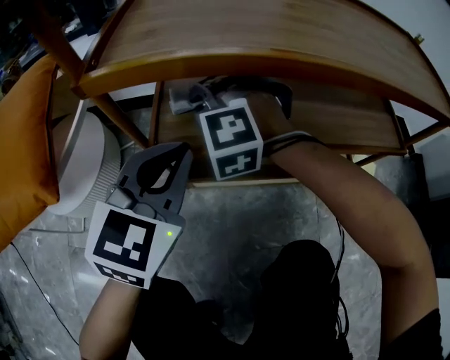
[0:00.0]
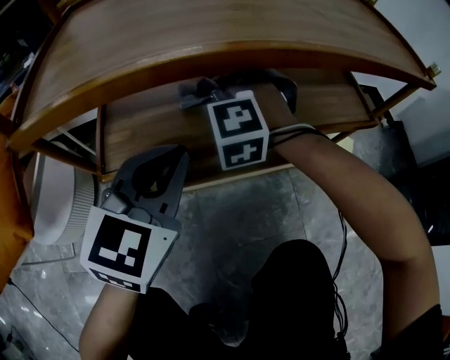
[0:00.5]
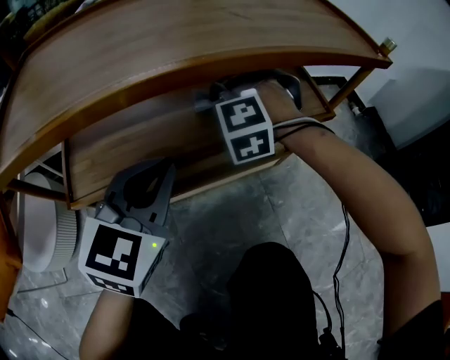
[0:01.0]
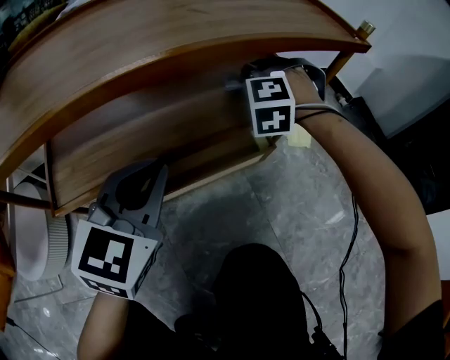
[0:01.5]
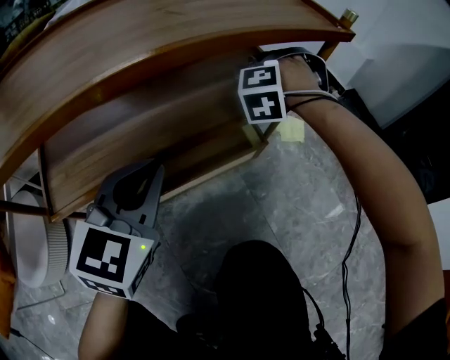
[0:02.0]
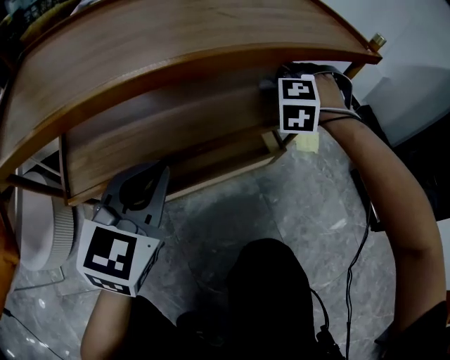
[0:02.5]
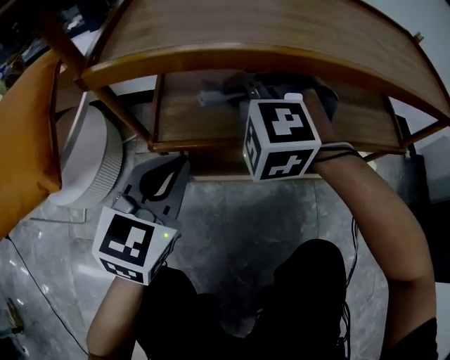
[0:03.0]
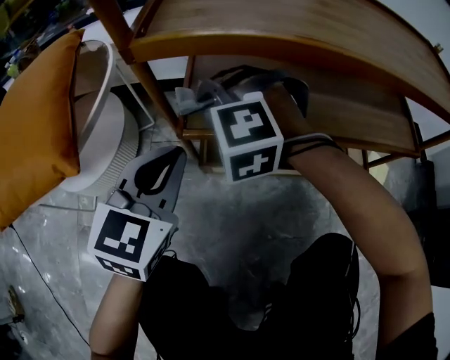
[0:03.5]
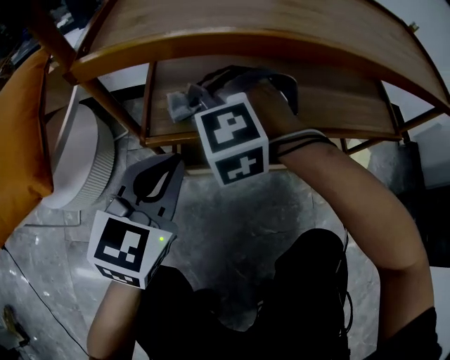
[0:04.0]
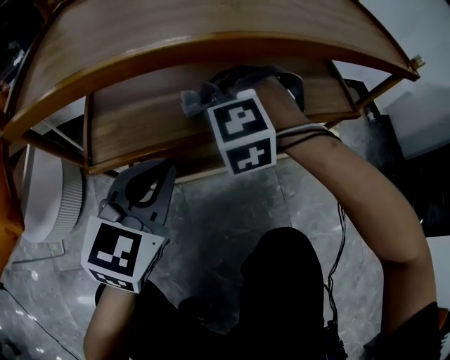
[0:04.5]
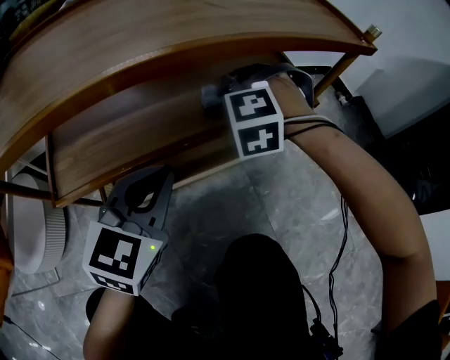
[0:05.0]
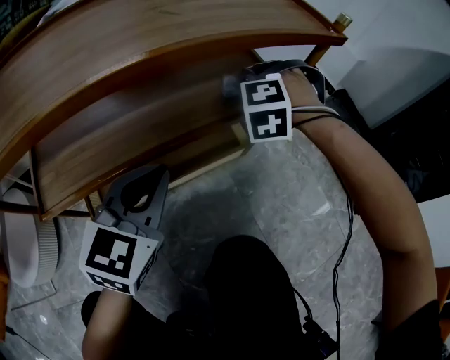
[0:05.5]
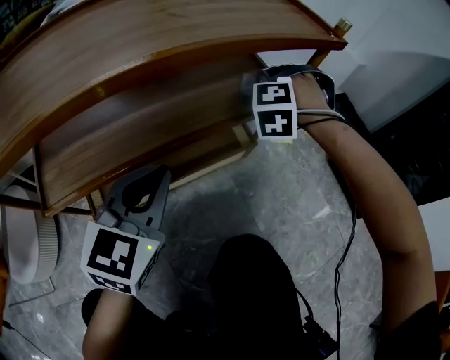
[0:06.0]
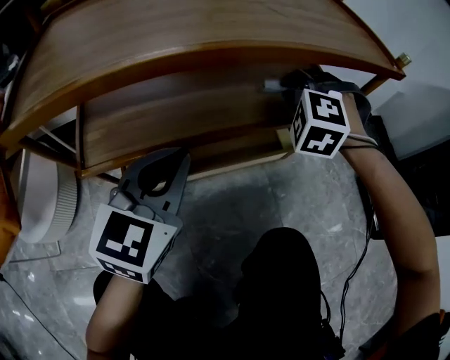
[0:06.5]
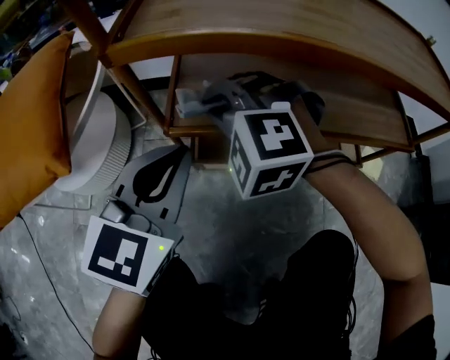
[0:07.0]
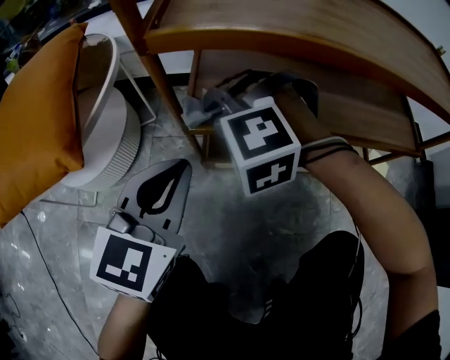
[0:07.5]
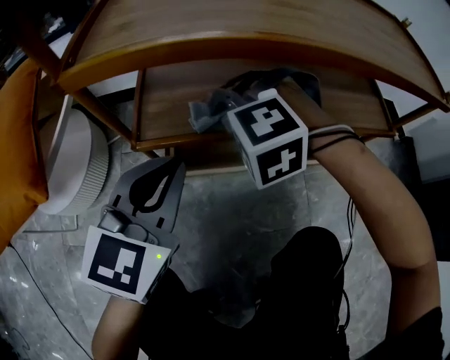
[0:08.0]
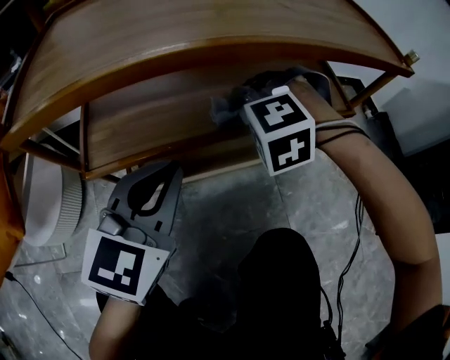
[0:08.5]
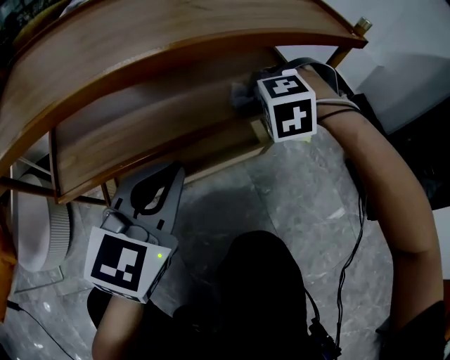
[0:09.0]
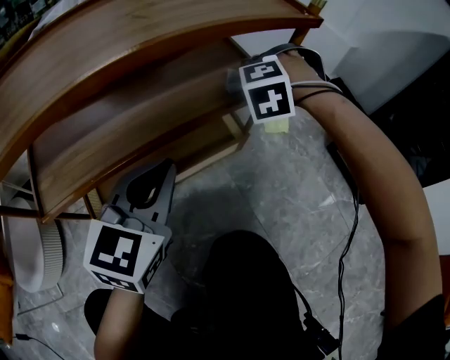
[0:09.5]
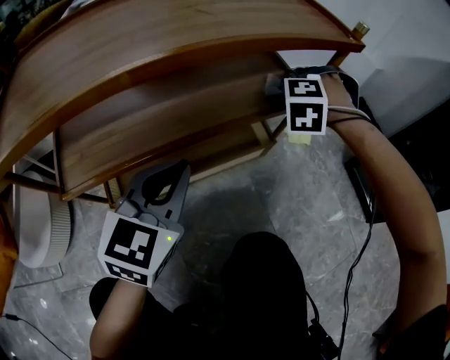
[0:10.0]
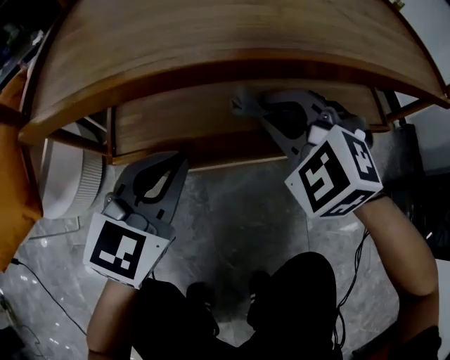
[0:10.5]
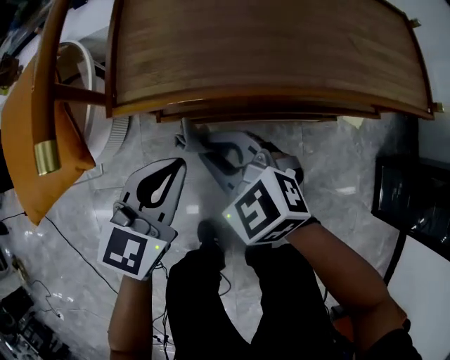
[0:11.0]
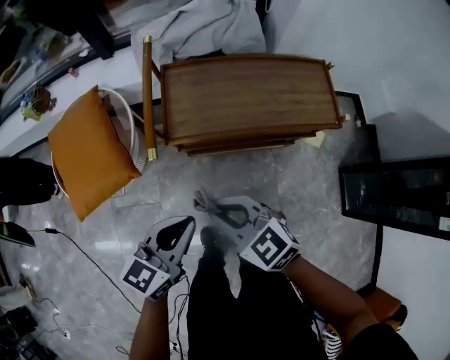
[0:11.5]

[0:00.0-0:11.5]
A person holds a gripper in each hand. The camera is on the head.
0:00.0 to 0:02.0: The left gripper changes place by about 20 cm.
0:02.0 to 0:04.0: The left gripper shifts by approximately 20 cm.
0:04.0 to 0:06.0: The left gripper changes place by approximately 25 cm, and swivels about 20 degrees.
0:06.0 to 0:07.5: The left gripper changes place by about 30 cm, and changes its angle by about 30 degrees.
0:07.5 to 0:09.5: The left gripper shifts by about 30 cm, and swivels roughly 30 degrees.
0:09.5 to 0:11.5: The left gripper is displaced upward by approximately 35 cm, and changes its angle by about 30 degrees.

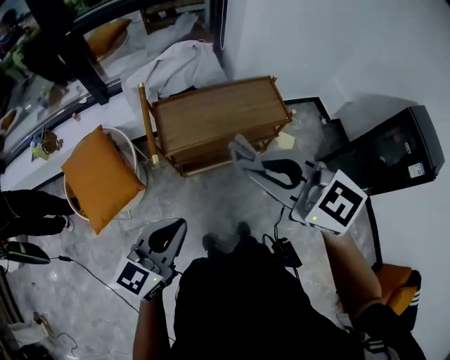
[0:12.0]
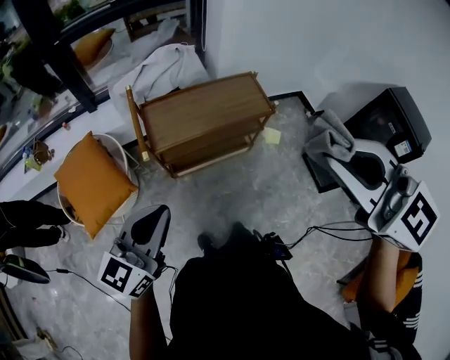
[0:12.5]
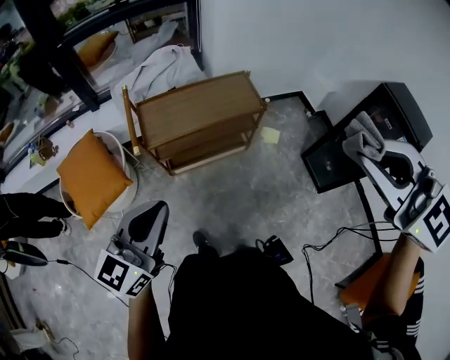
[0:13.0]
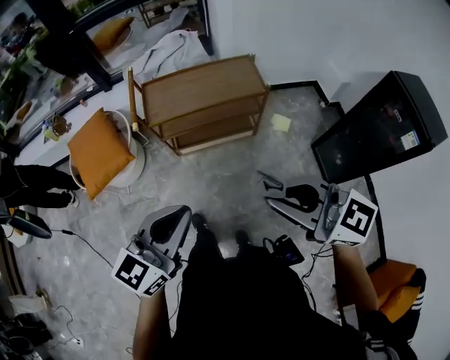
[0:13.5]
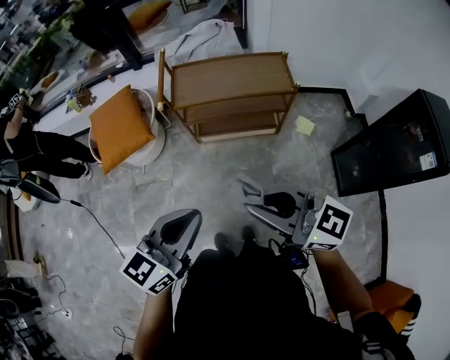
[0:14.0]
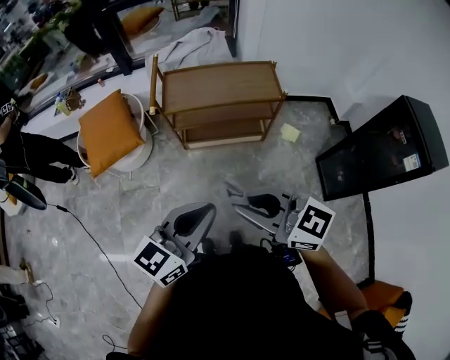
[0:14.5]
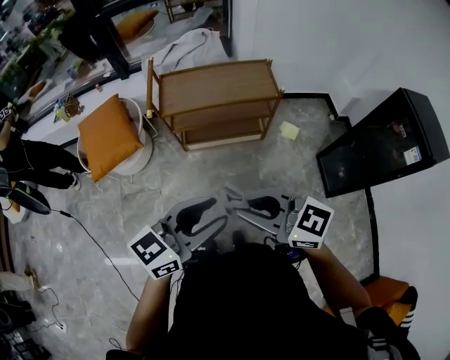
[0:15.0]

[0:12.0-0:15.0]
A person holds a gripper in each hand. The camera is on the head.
0:12.0 to 0:13.5: The left gripper moves roughly 25 cm.
0:13.5 to 0:15.0: The left gripper changes place by some 5 cm, and opens.

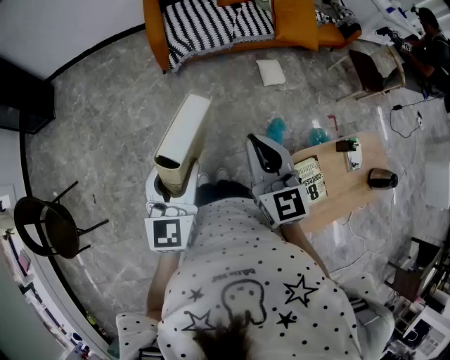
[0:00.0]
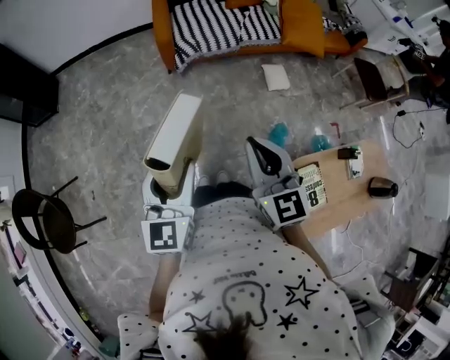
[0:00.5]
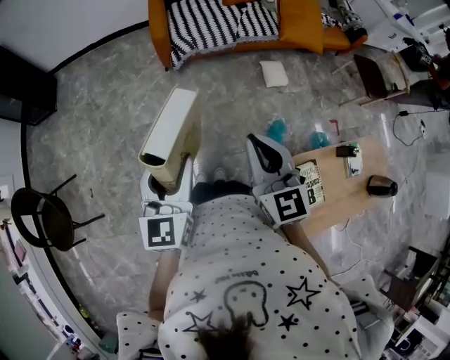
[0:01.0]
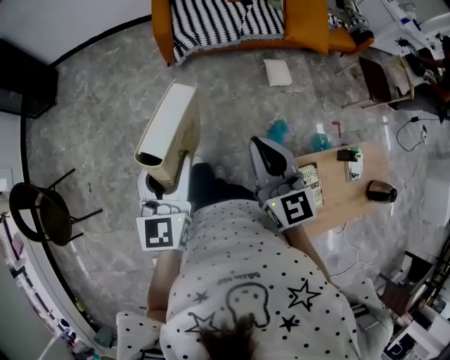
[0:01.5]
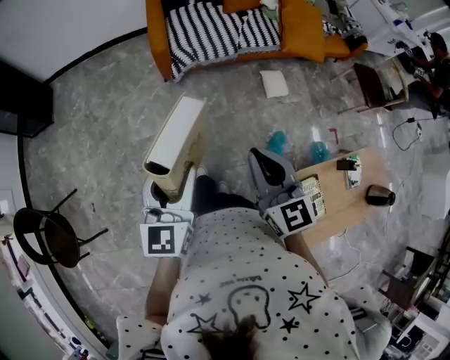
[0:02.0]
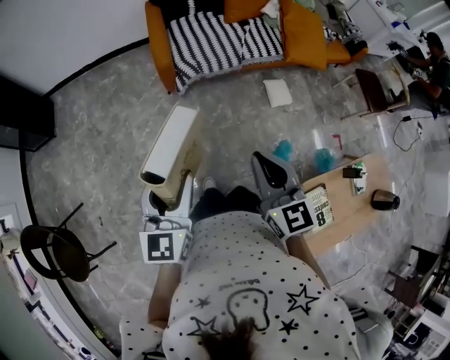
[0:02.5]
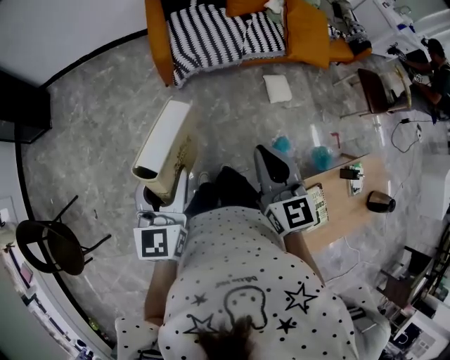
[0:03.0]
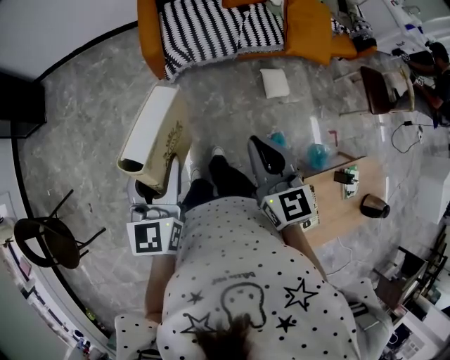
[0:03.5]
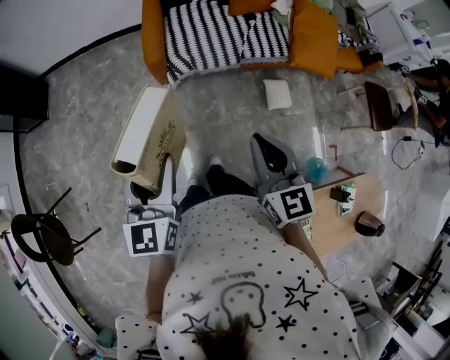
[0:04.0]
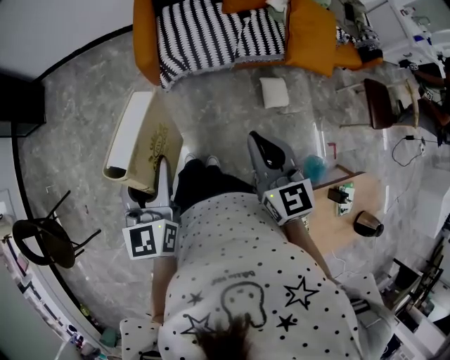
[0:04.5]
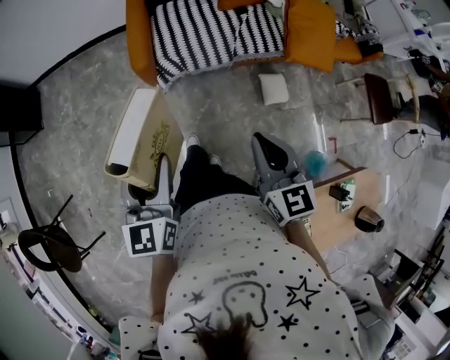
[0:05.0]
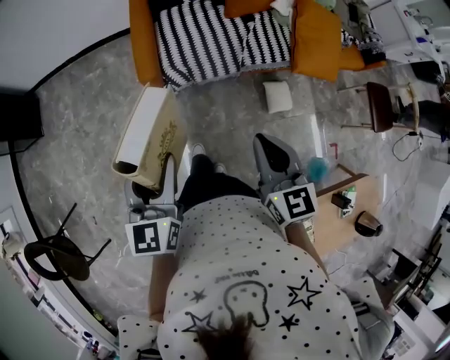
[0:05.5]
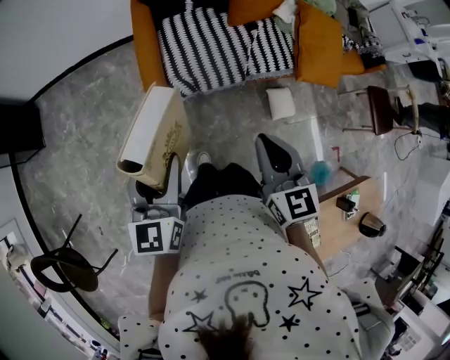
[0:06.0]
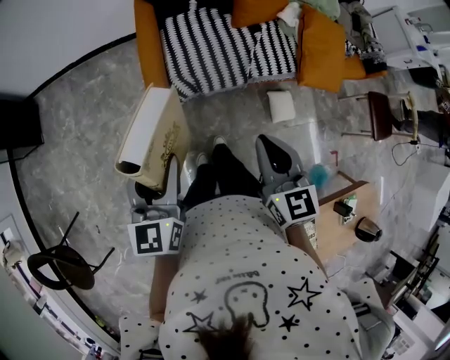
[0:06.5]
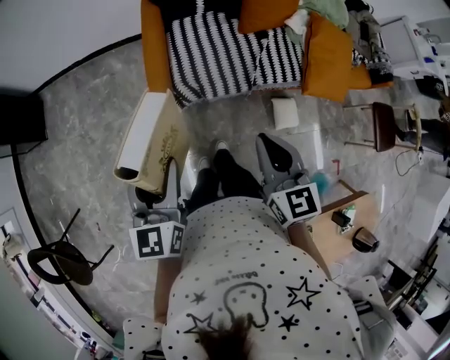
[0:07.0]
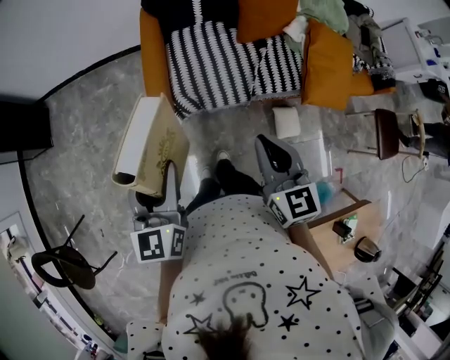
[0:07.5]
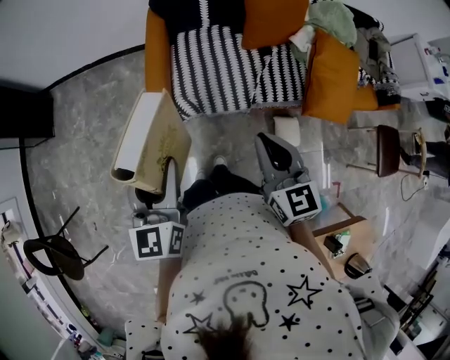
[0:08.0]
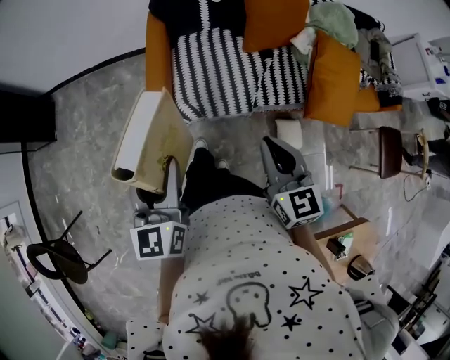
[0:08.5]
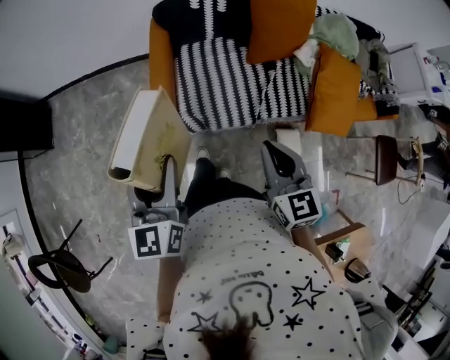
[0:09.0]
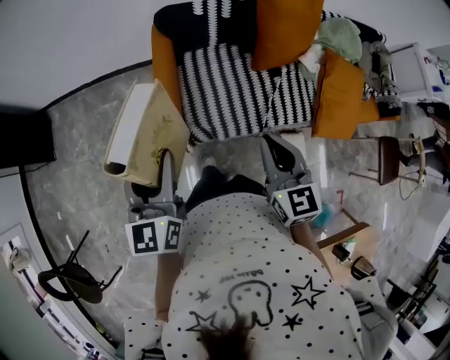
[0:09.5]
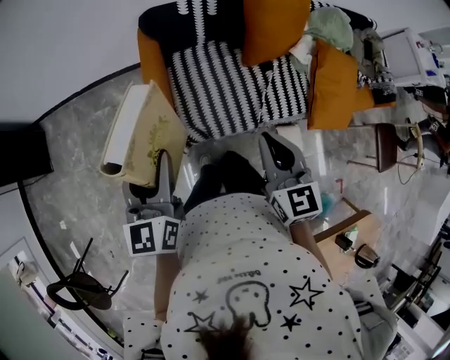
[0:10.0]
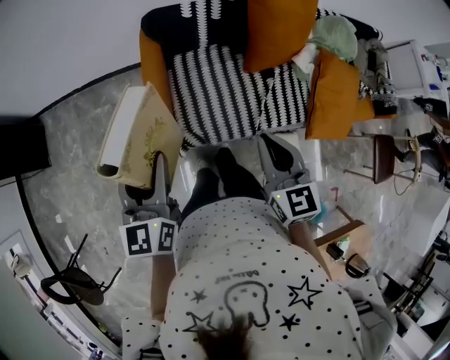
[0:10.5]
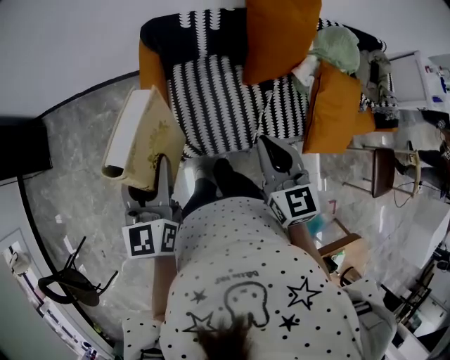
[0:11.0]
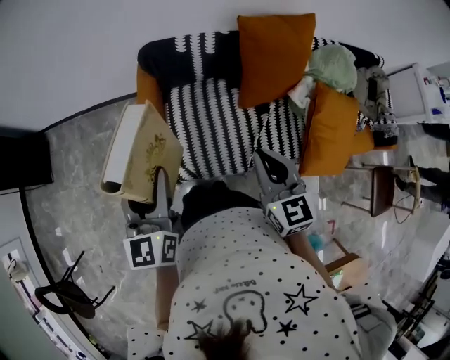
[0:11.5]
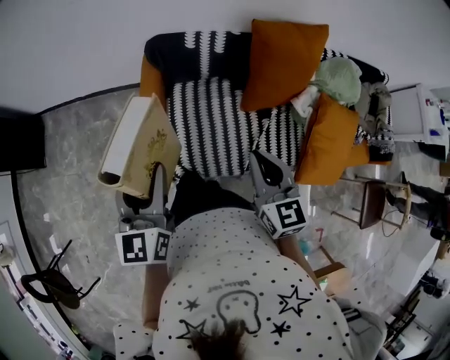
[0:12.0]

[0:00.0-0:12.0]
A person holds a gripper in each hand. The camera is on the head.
0:00.0 to 0:02.0: Both grippers move forward, about 10 cm.
0:02.0 to 0:04.0: Both grippers move forward, some 20 cm.
0:04.0 to 0:06.0: The grippers both shift forward by roughly 20 cm.
0:06.0 to 0:08.0: Both grippers travel together forward and to the right, about 10 cm.
0:08.0 to 0:10.0: The grippers both shift forward by some 15 cm.
0:10.0 to 0:12.0: The grippers both shift forward and to the right by some 15 cm.

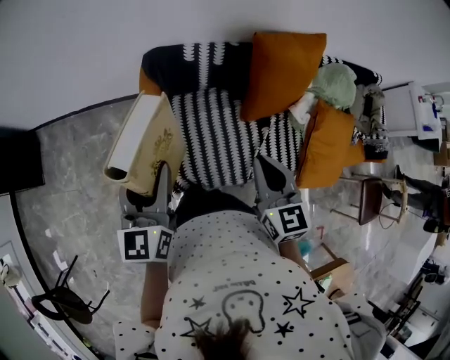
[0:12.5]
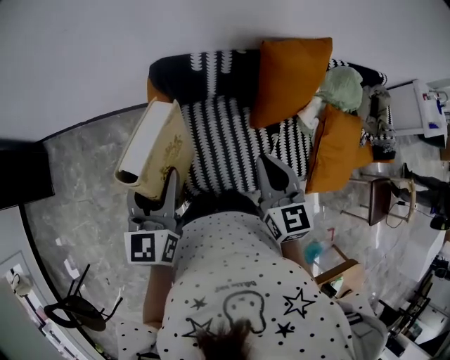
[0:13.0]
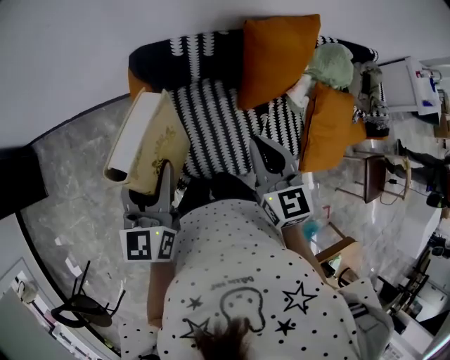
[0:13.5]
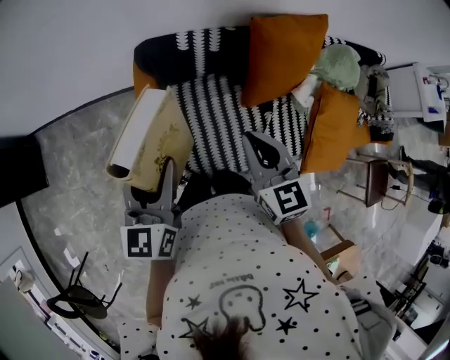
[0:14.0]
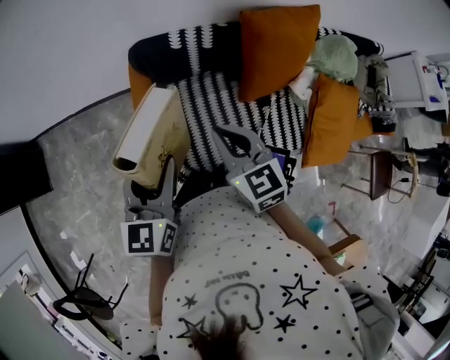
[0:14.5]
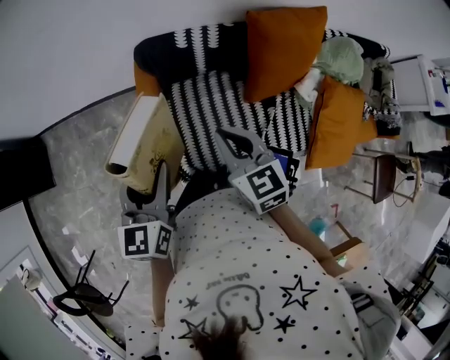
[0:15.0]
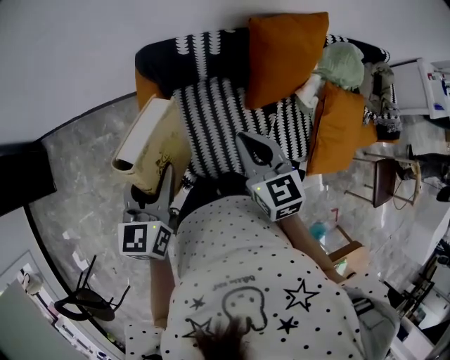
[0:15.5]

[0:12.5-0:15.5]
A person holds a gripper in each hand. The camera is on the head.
0:12.5 to 0:14.0: The right gripper moves roughly 5 cm.
